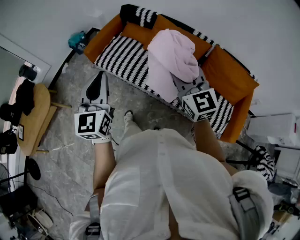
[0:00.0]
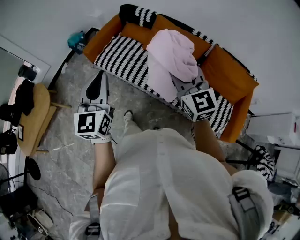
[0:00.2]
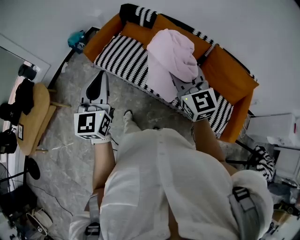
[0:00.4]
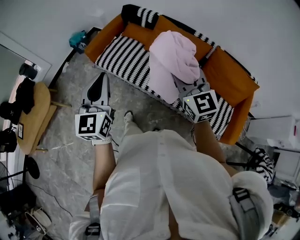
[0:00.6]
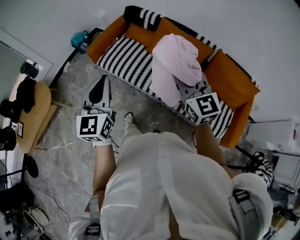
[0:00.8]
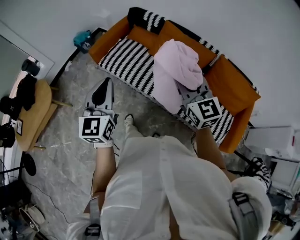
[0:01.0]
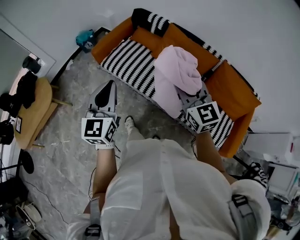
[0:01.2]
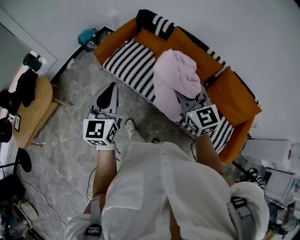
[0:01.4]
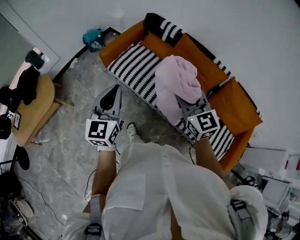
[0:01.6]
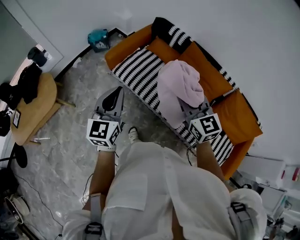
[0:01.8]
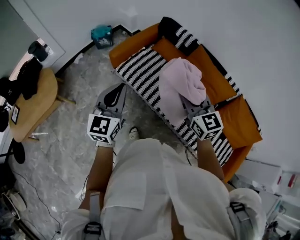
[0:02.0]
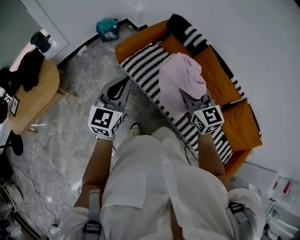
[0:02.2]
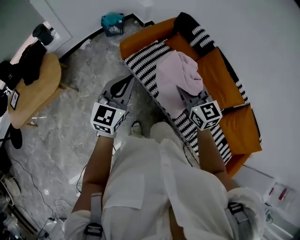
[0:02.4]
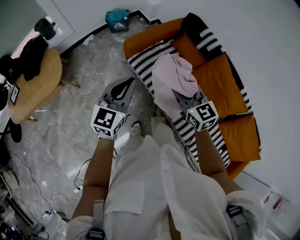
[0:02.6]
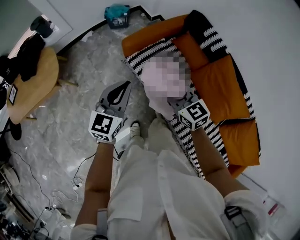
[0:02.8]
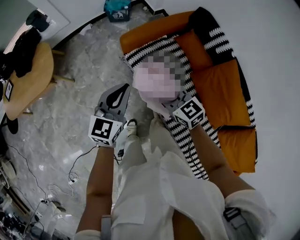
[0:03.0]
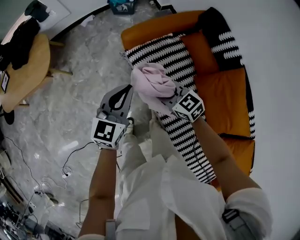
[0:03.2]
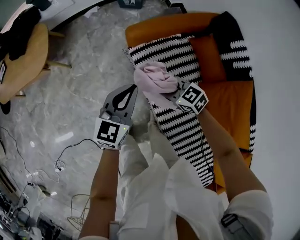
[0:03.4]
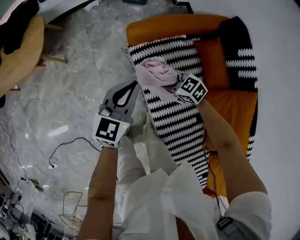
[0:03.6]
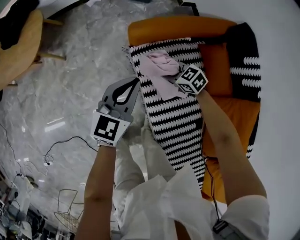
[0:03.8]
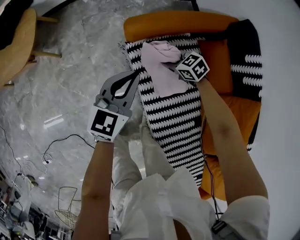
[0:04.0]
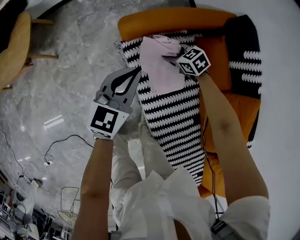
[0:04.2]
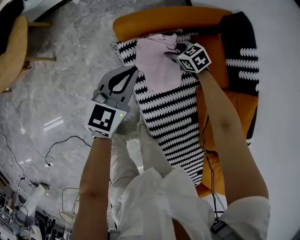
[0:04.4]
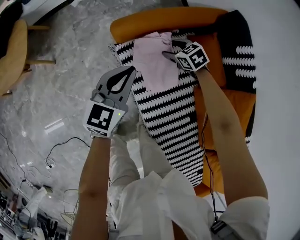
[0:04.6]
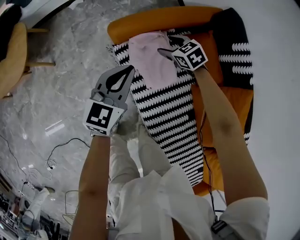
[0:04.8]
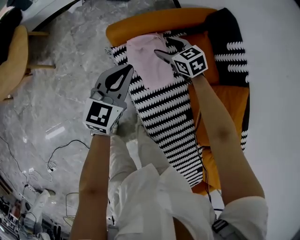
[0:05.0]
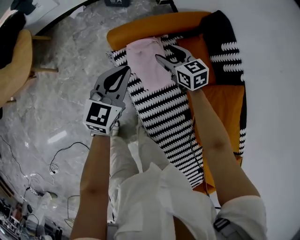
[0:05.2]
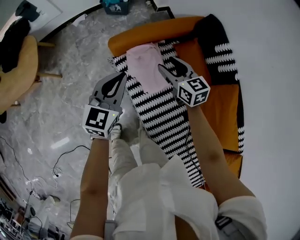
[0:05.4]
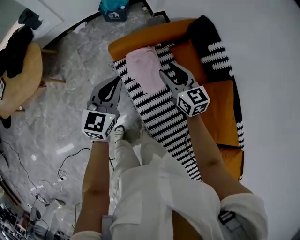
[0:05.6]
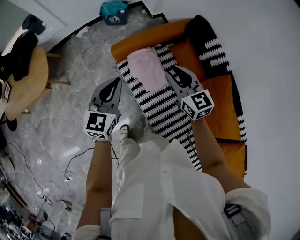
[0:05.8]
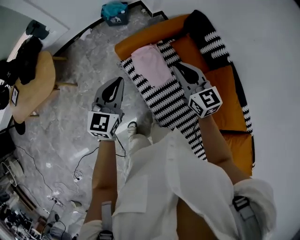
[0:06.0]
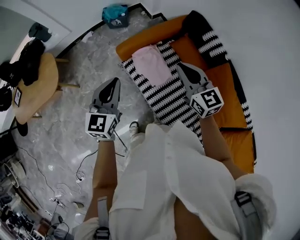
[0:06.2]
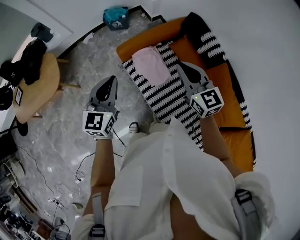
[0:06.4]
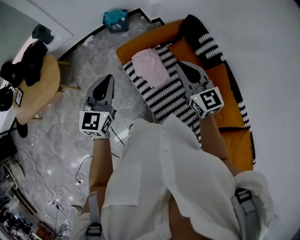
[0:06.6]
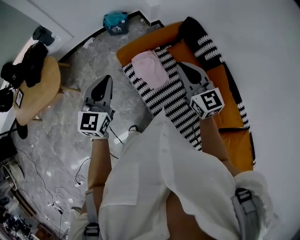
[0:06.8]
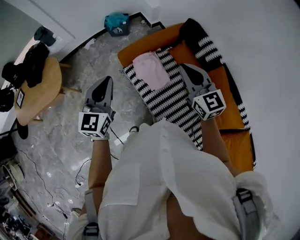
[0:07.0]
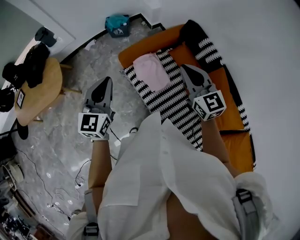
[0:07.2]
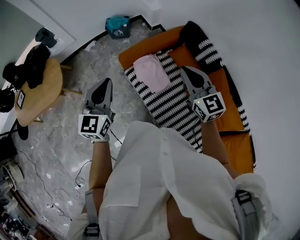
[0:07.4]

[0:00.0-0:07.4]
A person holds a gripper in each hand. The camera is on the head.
0:00.0 to 0:01.4: The right gripper travels forward by some 5 cm, while the left gripper ends up roughly 5 cm from where it was.
0:01.4 to 0:03.0: The left gripper goes about 35 cm forward and downward. Meanwhile the right gripper heads forward, downward and to the left, covering approximately 50 cm, and changes its angle by roughly 50 degrees.
0:03.0 to 0:04.4: The right gripper moves downward, forward and to the right, about 40 cm, and tips its fingers downward by approximately 30 degrees, while the left gripper shifts about 25 cm downward, forward and to the right.
0:04.4 to 0:06.0: The right gripper travels upward by about 40 cm, points its fingers about 40 degrees further upward, and closes its fingers. The left gripper travels upward by about 20 cm.
0:06.0 to 0:07.4: The two grippers go about 10 cm upward.

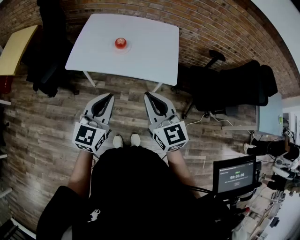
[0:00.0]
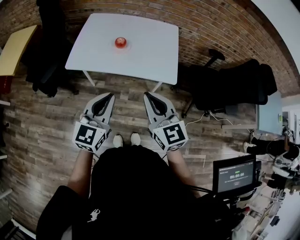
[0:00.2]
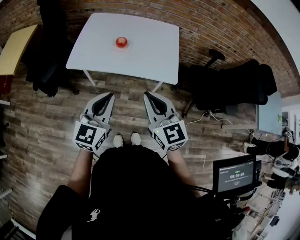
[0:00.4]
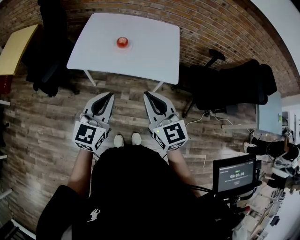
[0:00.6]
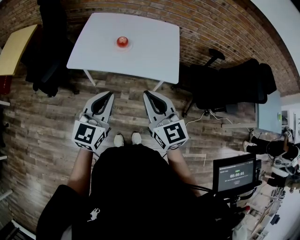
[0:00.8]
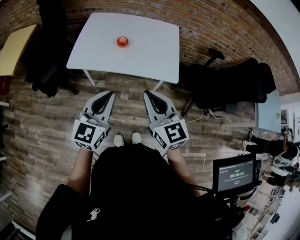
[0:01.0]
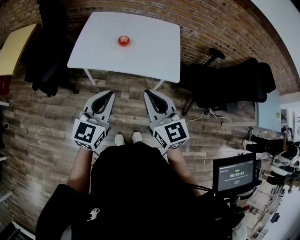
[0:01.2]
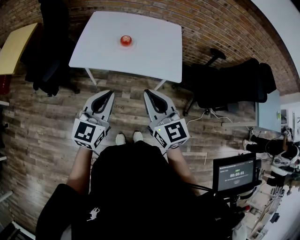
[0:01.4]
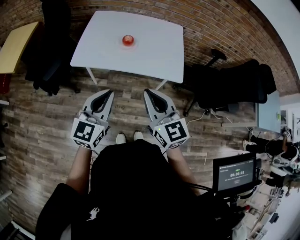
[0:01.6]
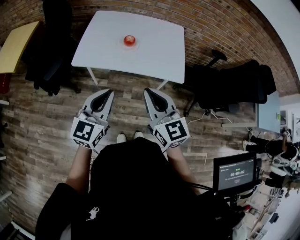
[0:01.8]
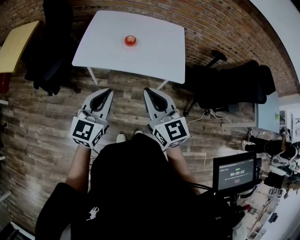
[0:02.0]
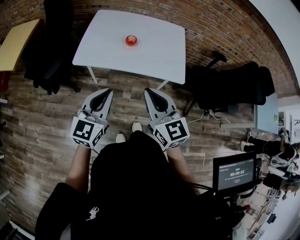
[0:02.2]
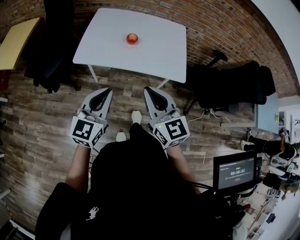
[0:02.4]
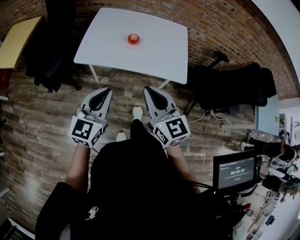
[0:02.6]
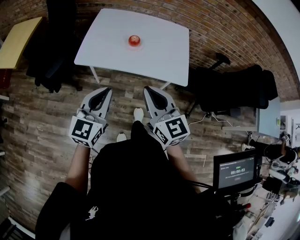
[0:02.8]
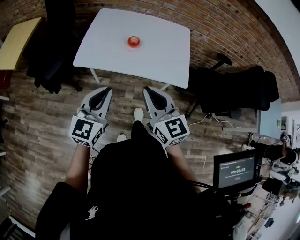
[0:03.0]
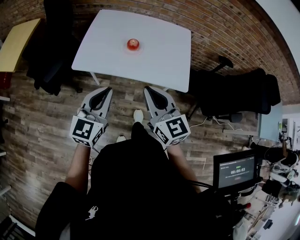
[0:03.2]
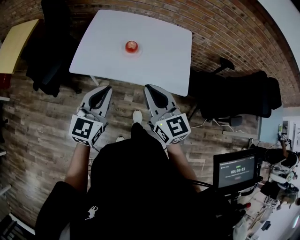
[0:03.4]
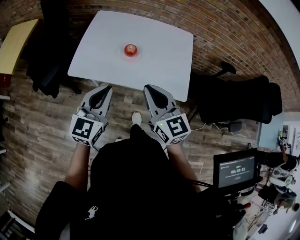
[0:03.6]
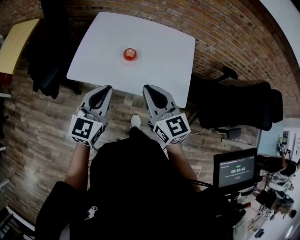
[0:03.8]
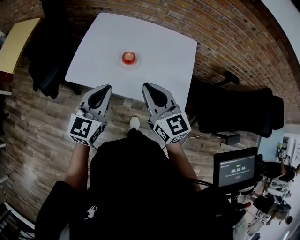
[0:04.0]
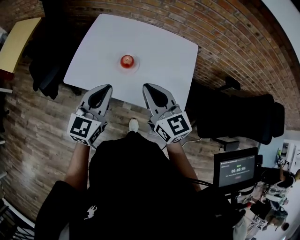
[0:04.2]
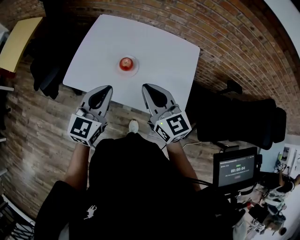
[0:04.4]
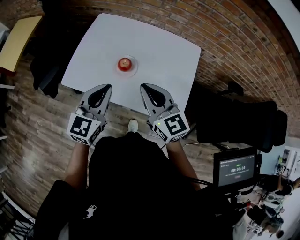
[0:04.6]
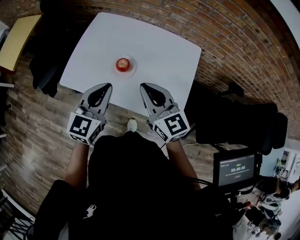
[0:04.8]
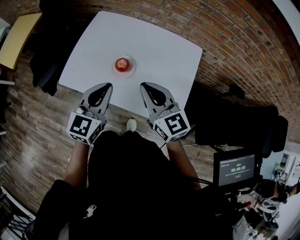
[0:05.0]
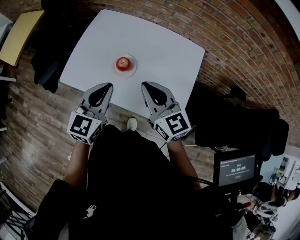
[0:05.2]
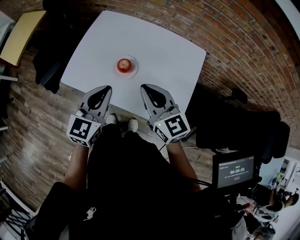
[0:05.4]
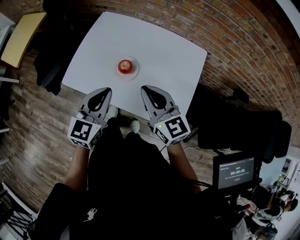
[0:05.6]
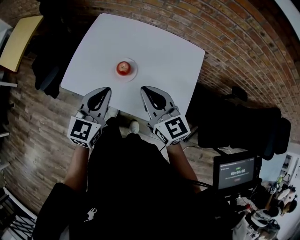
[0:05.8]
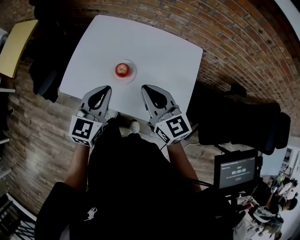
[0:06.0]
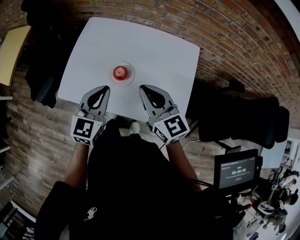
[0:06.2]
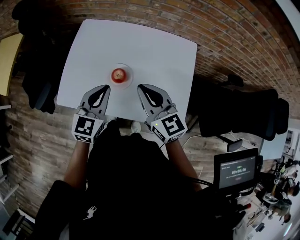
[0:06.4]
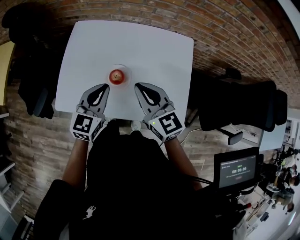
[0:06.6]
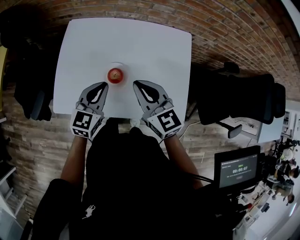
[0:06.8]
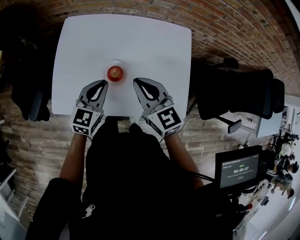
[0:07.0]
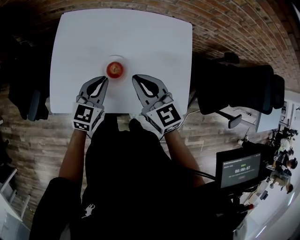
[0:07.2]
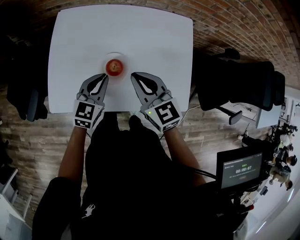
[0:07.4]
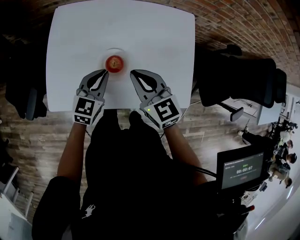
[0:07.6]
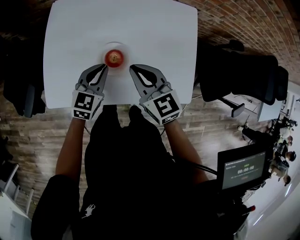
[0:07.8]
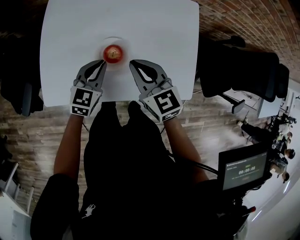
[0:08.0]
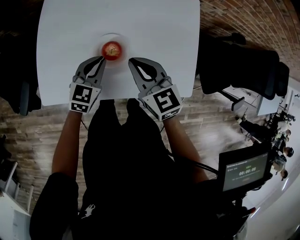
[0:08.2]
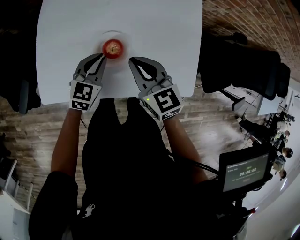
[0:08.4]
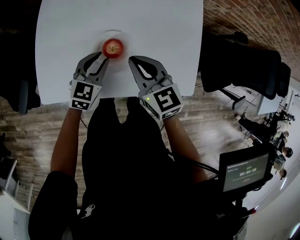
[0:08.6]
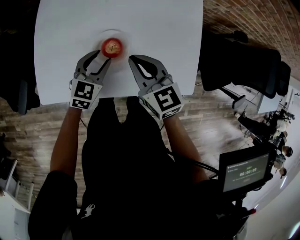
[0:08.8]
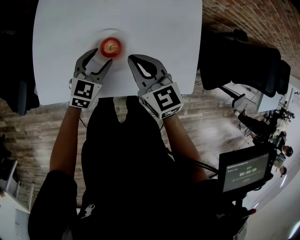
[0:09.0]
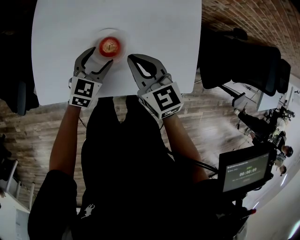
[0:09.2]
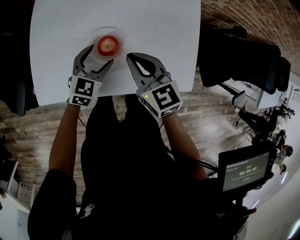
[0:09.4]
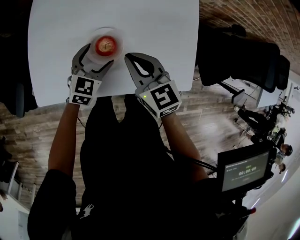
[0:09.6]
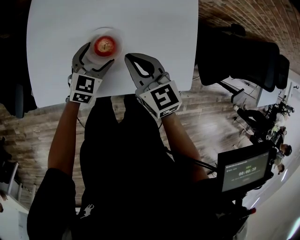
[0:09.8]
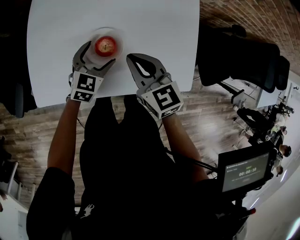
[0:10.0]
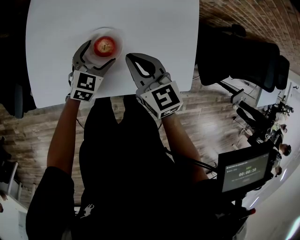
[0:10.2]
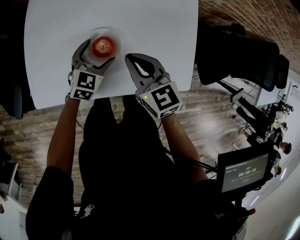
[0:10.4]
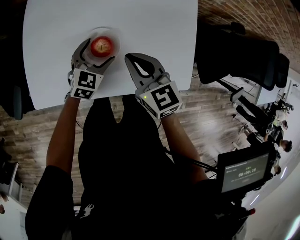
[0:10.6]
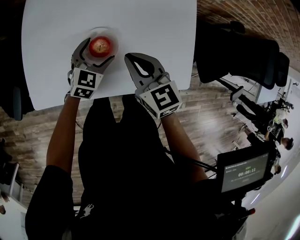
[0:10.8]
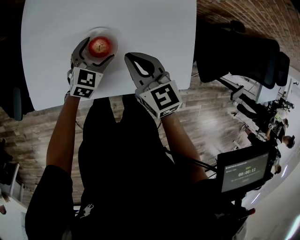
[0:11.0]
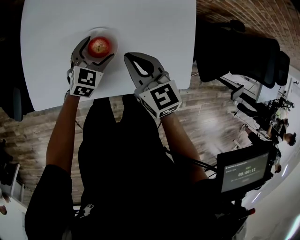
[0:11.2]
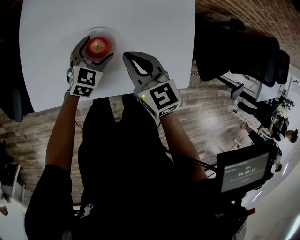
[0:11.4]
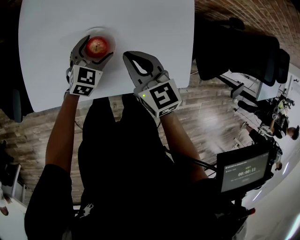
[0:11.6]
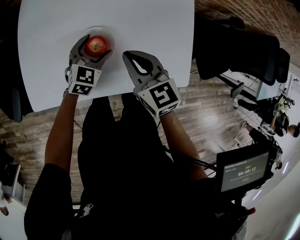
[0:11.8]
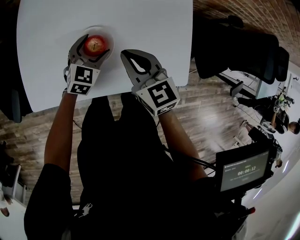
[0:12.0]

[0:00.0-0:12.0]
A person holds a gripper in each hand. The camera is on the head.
0:00.0 to 0:01.6: The two grippers go roughly 5 cm to the left.
0:01.6 to 0:03.0: The right gripper shifts by some 5 cm.
0:03.0 to 0:04.4: The grippers both shift forward and to the right by about 25 cm.
0:04.4 to 0:06.0: Both grippers move forward, approximately 5 cm.
0:06.0 to 0:07.6: The right gripper heads downward, forward and to the left, covering approximately 15 cm, and rotates approximately 20 degrees; the left gripper travels downward and forward by about 20 cm, and changes its angle by roughly 20 degrees.
0:07.6 to 0:09.0: The left gripper heads downward, covering some 5 cm, and opens.
0:09.0 to 0:10.4: The left gripper opens its fingers.
0:10.4 to 0:12.0: The grippers make only small movements.

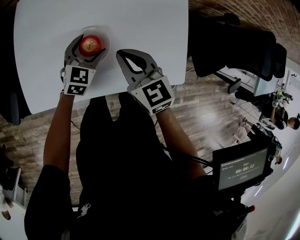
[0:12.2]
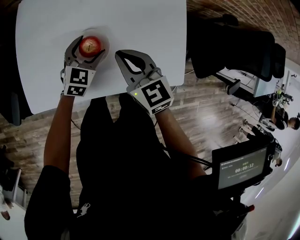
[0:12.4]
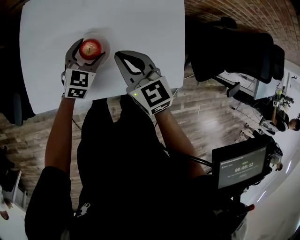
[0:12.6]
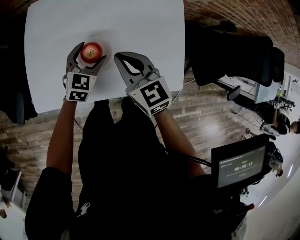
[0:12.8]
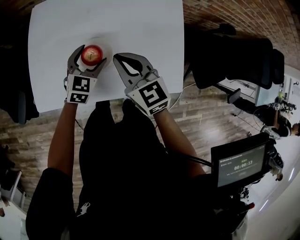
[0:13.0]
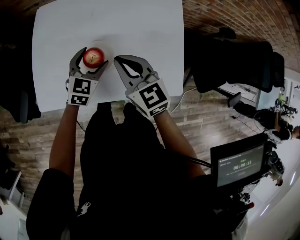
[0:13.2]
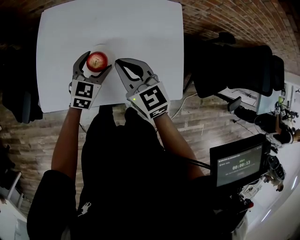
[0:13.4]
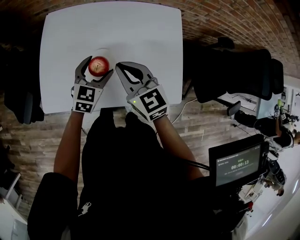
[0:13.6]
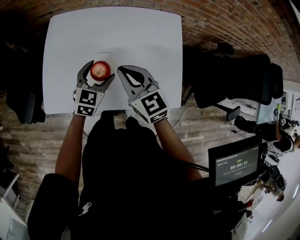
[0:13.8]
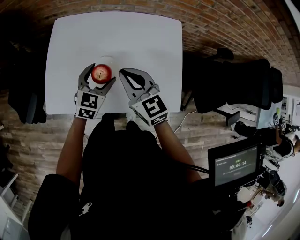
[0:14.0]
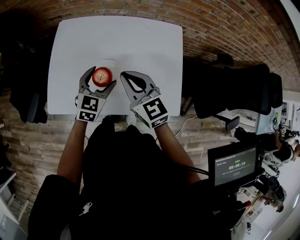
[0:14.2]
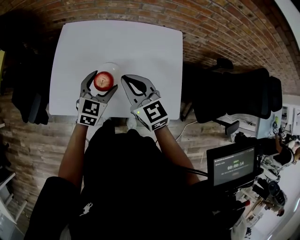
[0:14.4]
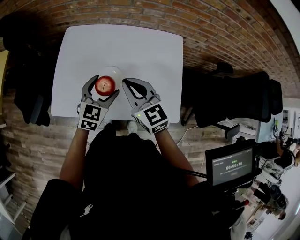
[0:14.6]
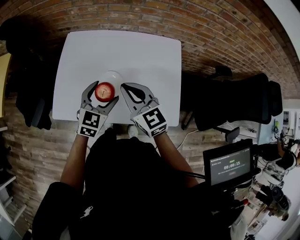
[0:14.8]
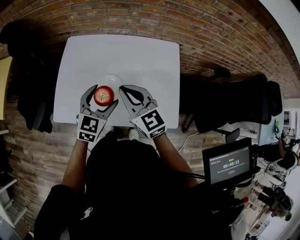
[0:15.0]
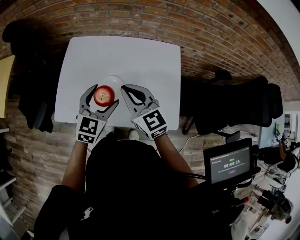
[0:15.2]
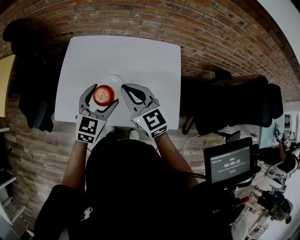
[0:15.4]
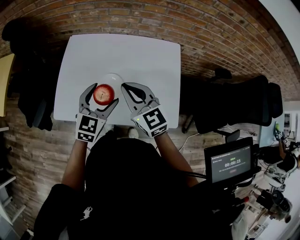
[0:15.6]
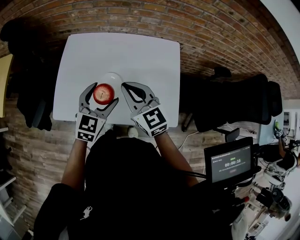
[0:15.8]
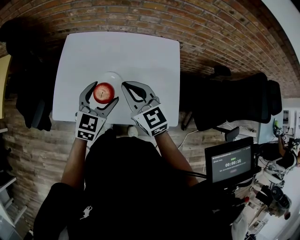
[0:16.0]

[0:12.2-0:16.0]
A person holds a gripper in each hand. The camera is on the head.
0:12.2 to 0:13.4: Both grippers move upward, about 10 cm.
0:13.4 to 0:14.8: The right gripper shifts about 5 cm upward; the left gripper travels upward and backward by some 10 cm.
0:14.8 to 0:16.0: The grippers make only small movements.
